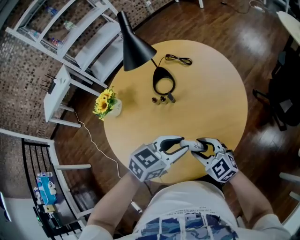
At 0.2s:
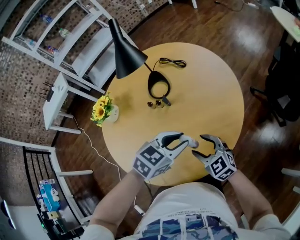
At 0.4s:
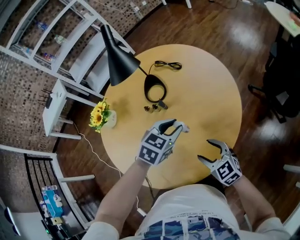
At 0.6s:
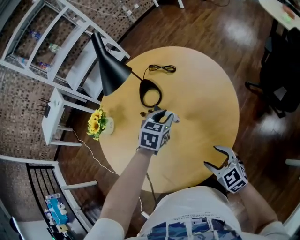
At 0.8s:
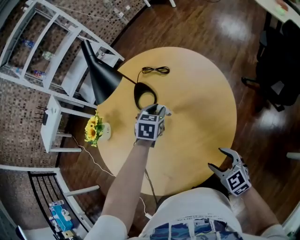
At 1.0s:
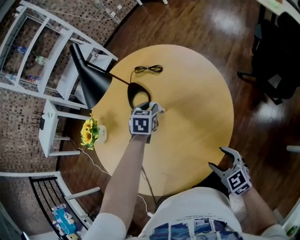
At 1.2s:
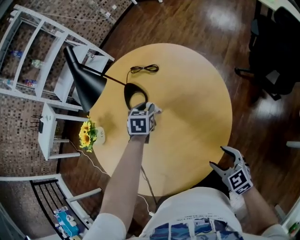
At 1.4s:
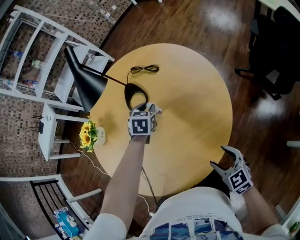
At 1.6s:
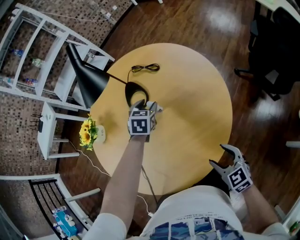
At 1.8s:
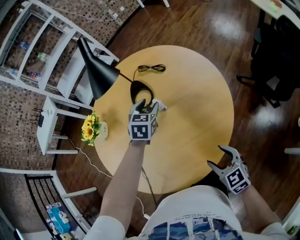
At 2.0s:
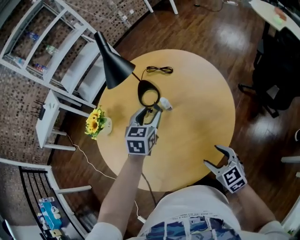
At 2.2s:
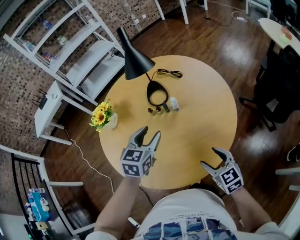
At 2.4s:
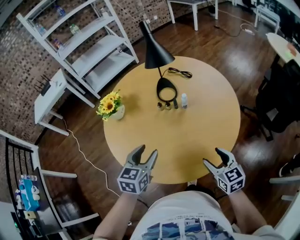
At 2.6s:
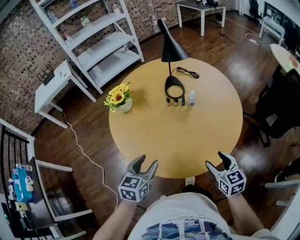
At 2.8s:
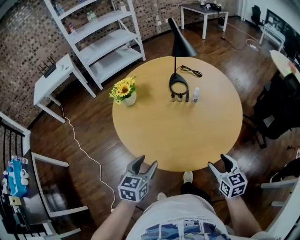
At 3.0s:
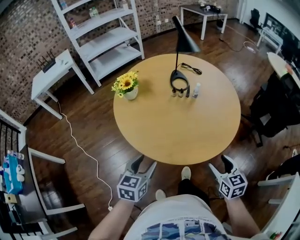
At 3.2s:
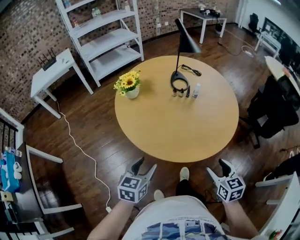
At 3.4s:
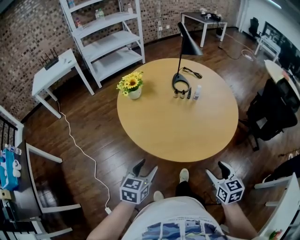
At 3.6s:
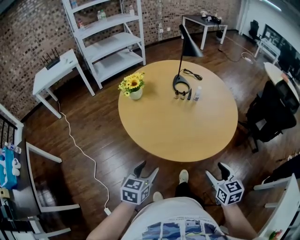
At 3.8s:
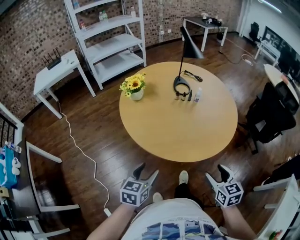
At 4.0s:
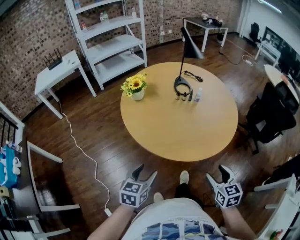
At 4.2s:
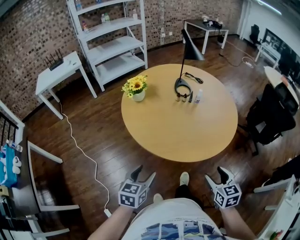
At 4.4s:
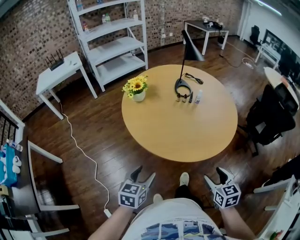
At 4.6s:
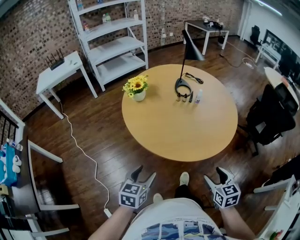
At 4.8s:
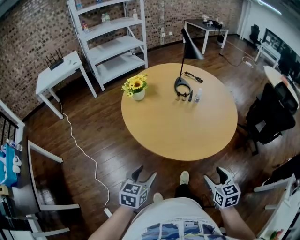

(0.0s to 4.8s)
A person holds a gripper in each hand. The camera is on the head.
0.0s - 1.6s: The left gripper travels forward and downward by about 30 cm, changes its angle by approximately 40 degrees, and opens its fingers; the right gripper shifts some 15 cm to the right, and turns by roughly 30 degrees.
1.6s - 3.2s: The right gripper goes roughly 35 cm to the left and backward. The left gripper is displaced backward and to the left by roughly 60 cm, and turns by some 30 degrees.
3.2s - 4.8s: Both grippers travel together backward, approximately 10 cm.

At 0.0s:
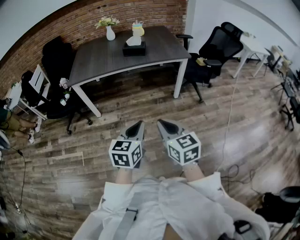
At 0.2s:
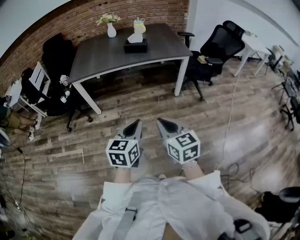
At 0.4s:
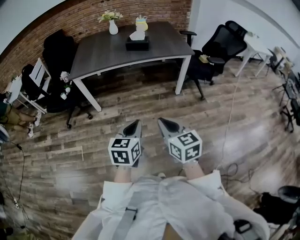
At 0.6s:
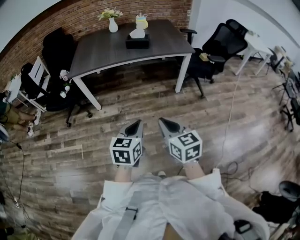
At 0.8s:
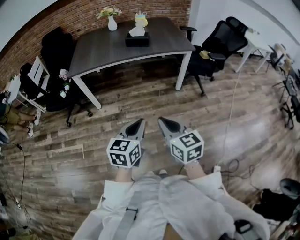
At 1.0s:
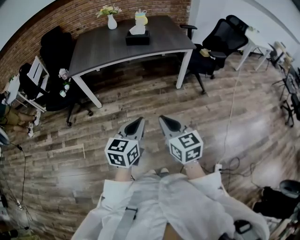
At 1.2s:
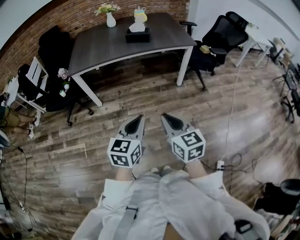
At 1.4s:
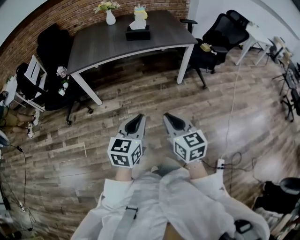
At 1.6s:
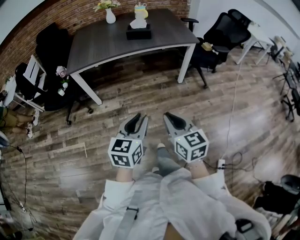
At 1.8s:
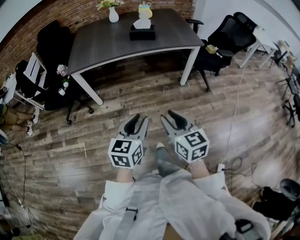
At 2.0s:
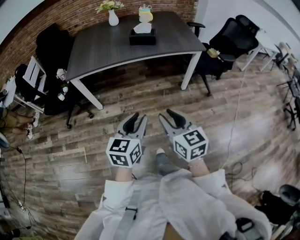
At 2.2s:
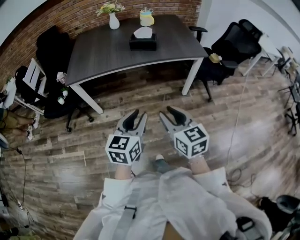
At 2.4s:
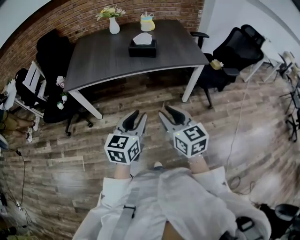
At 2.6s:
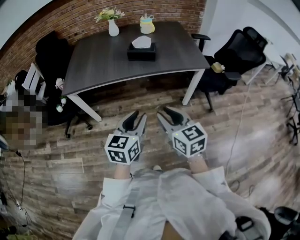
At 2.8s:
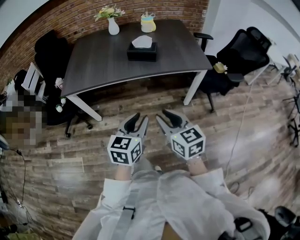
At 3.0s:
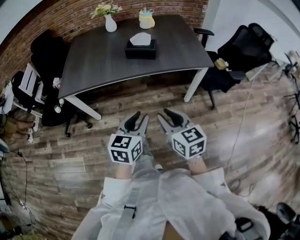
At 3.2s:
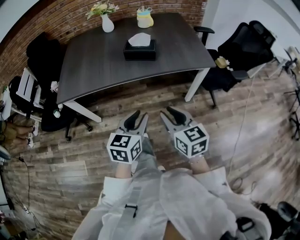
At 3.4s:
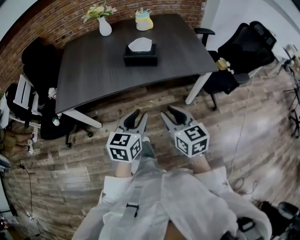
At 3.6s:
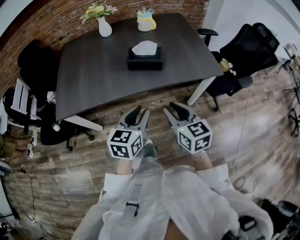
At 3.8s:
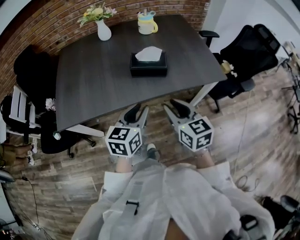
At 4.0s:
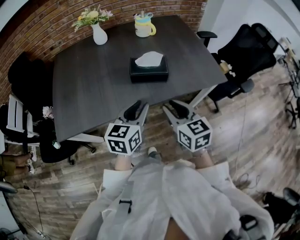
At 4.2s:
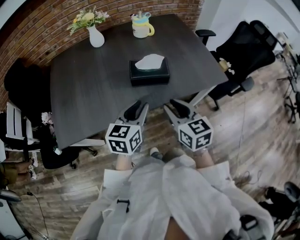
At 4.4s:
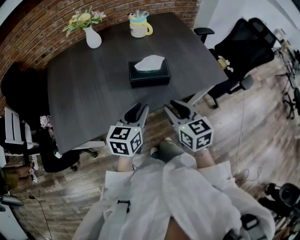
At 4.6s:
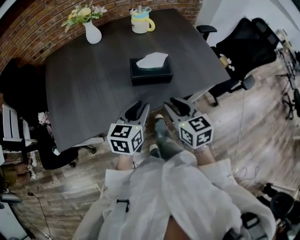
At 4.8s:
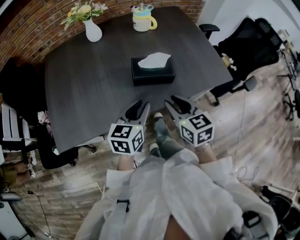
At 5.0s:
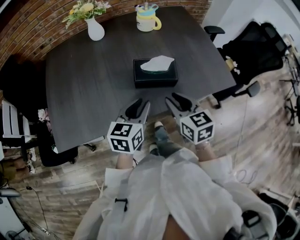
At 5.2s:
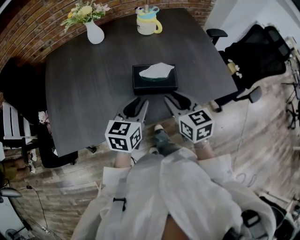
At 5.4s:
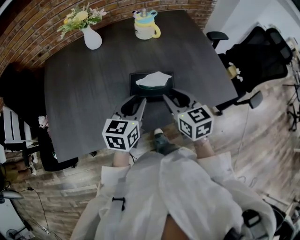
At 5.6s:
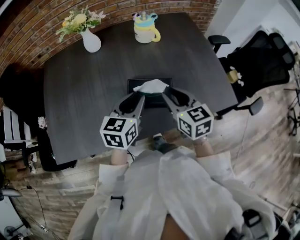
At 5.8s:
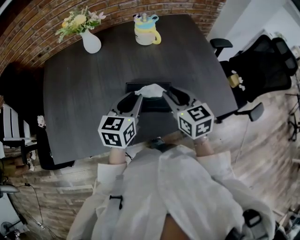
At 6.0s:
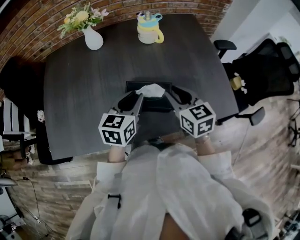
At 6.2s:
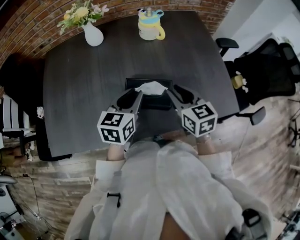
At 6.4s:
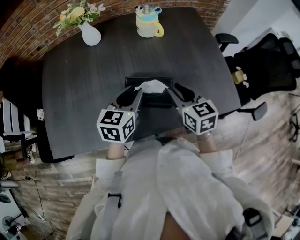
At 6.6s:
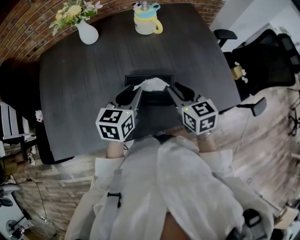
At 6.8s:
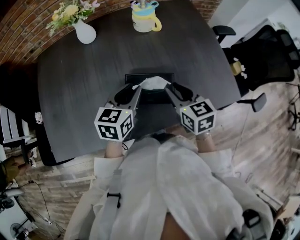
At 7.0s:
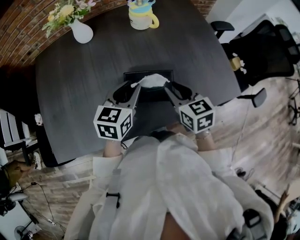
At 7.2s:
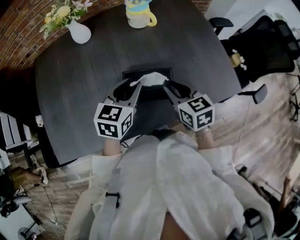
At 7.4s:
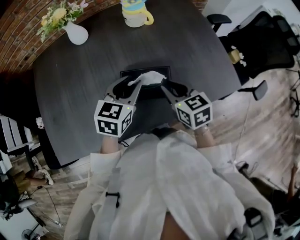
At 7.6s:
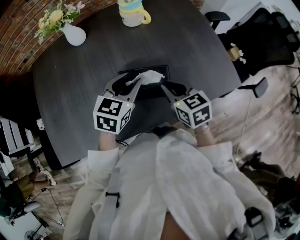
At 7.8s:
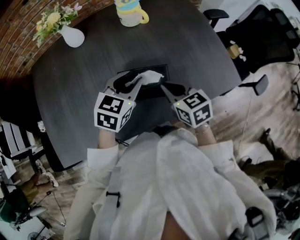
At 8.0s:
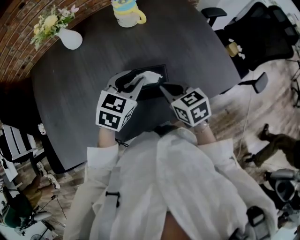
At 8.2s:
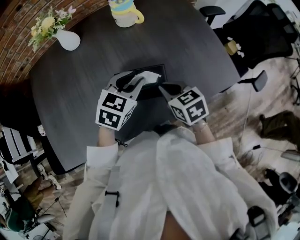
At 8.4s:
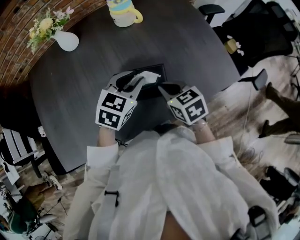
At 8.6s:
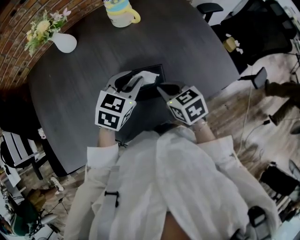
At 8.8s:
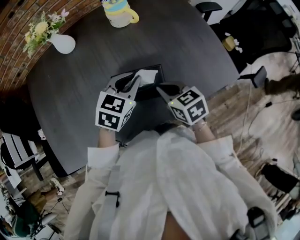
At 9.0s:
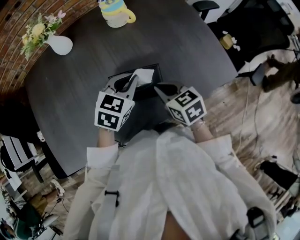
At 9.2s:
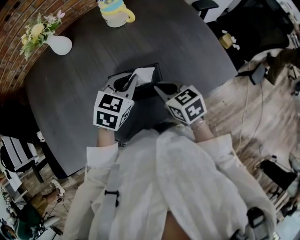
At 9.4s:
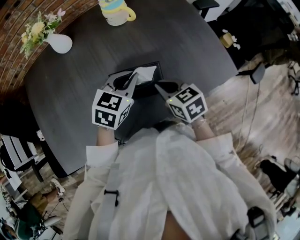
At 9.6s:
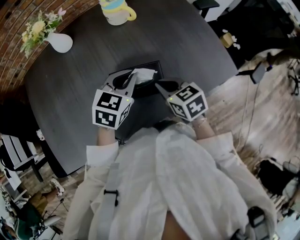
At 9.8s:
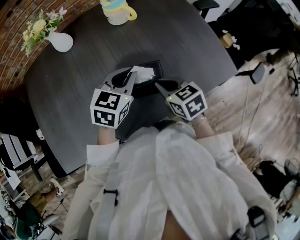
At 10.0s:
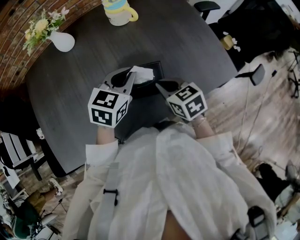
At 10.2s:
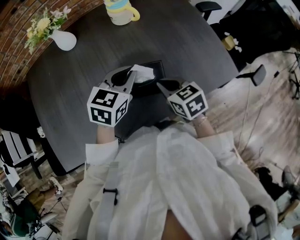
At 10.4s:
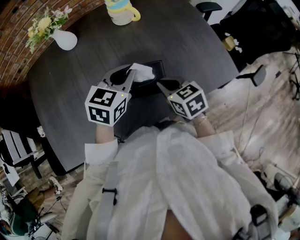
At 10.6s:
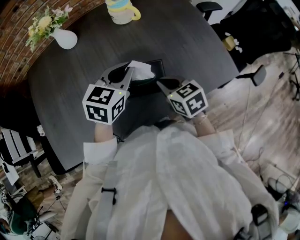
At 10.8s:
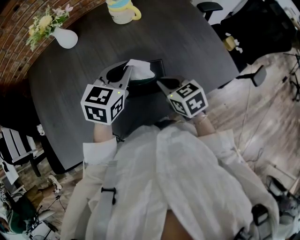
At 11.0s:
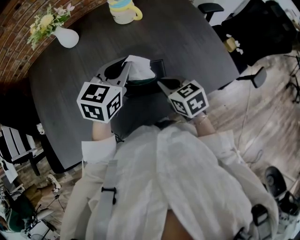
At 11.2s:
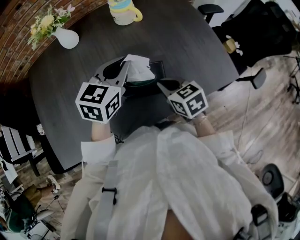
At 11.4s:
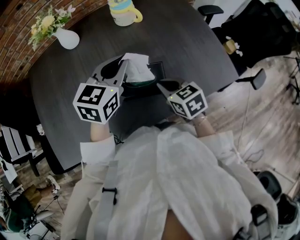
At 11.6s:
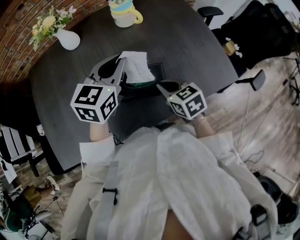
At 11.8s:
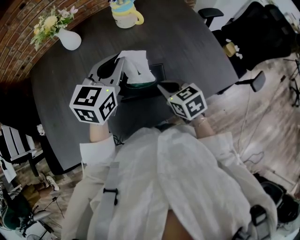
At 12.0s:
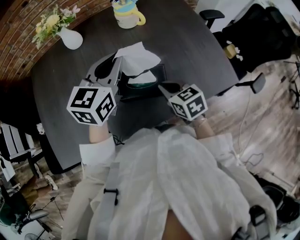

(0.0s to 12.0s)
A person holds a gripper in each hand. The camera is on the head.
0.0s - 1.6s: Both grippers travel together to the left, about 5 cm.
1.6s - 3.0s: The grippers both shift forward by roughly 30 cm. The right gripper opens up.
3.0s - 4.4s: Both grippers travel together forward, some 35 cm.
4.4s - 6.0s: The two grippers go approximately 25 cm forward.
6.0s - 7.6s: The left gripper rotates about 20 degrees; the right gripper moves downward, roughly 5 cm.
7.6s - 9.0s: The left gripper closes.
9.0s - 10.4s: The grippers stay close to where they were, moving slightly.
10.4s - 12.0s: The left gripper goes some 10 cm upward.

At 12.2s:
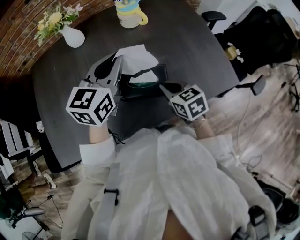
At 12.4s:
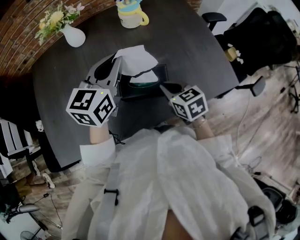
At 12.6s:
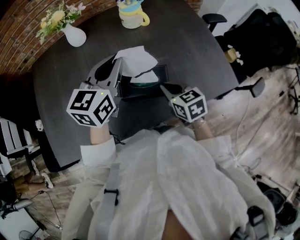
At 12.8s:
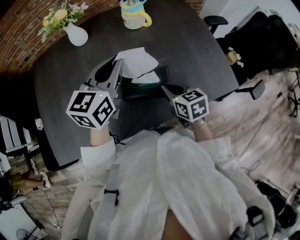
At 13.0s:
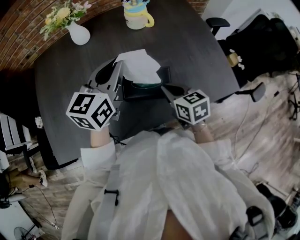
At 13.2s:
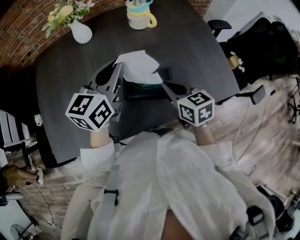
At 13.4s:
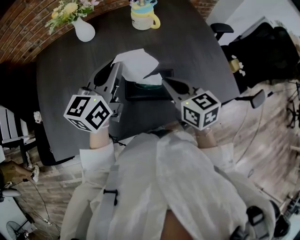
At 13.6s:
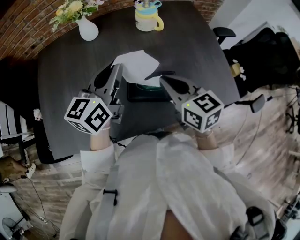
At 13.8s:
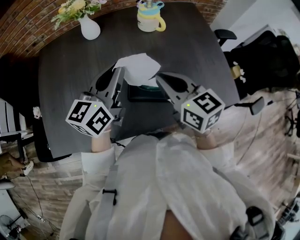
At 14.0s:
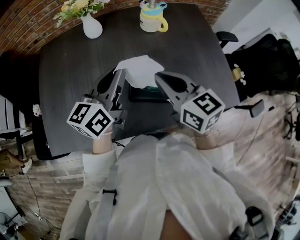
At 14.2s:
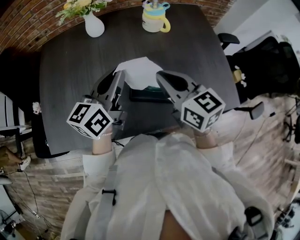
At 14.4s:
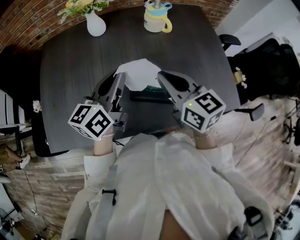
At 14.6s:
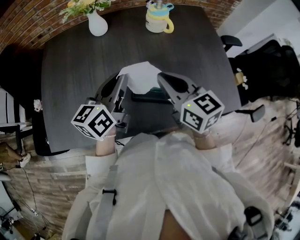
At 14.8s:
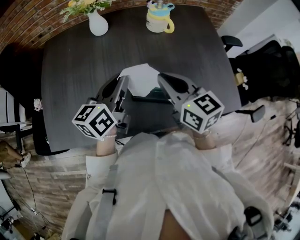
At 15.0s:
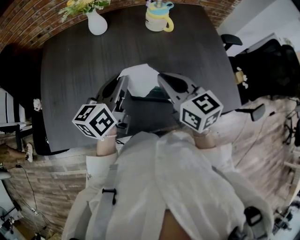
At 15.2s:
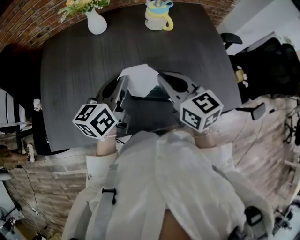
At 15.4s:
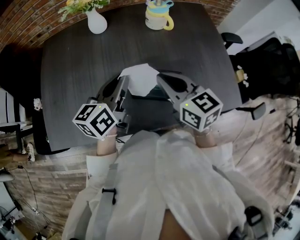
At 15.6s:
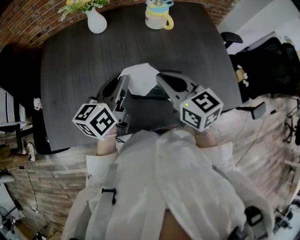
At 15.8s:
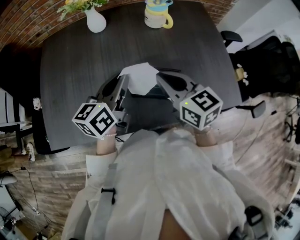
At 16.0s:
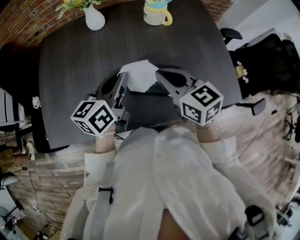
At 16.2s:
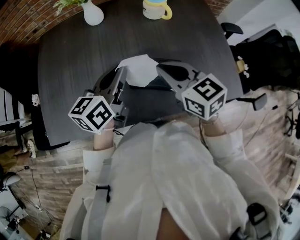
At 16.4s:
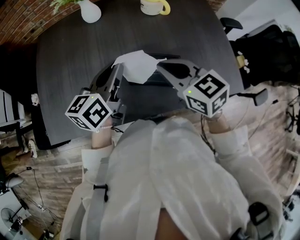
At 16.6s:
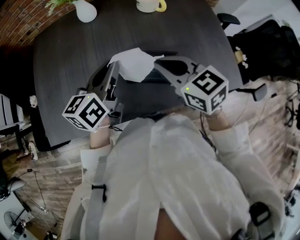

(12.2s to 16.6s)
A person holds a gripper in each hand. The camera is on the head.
12.2s - 13.6s: The right gripper moves upward, roughly 15 cm, and turns by about 20 degrees; the left gripper moves to the left, some 5 cm.
13.6s - 15.2s: The left gripper travels downward by some 5 cm.
15.2s - 16.6s: There are only small adjustments of the grippers.

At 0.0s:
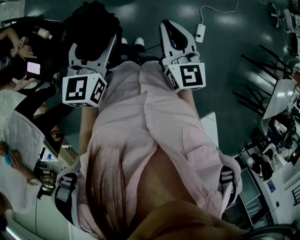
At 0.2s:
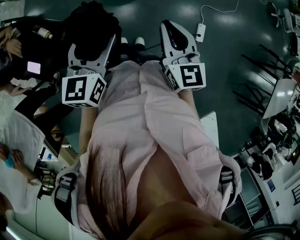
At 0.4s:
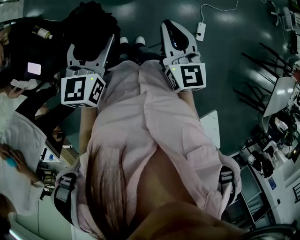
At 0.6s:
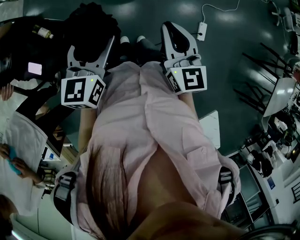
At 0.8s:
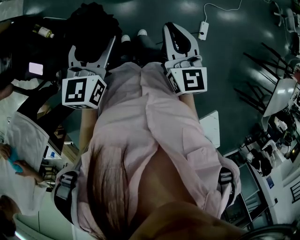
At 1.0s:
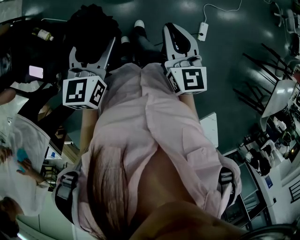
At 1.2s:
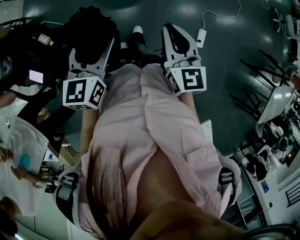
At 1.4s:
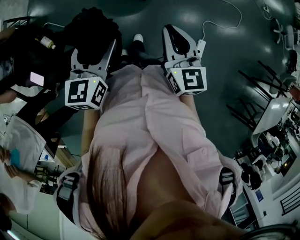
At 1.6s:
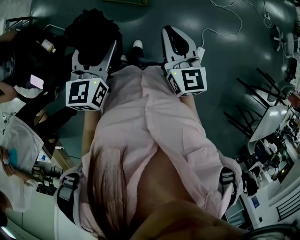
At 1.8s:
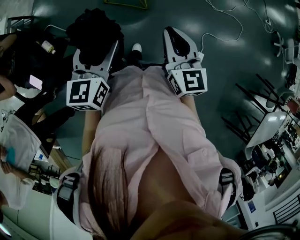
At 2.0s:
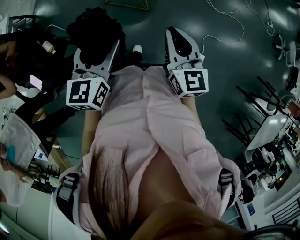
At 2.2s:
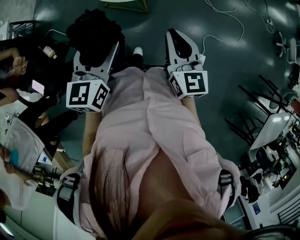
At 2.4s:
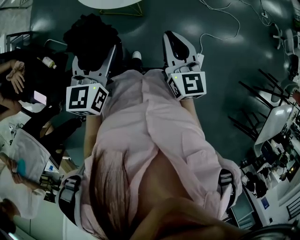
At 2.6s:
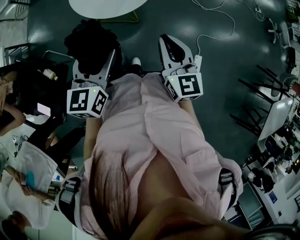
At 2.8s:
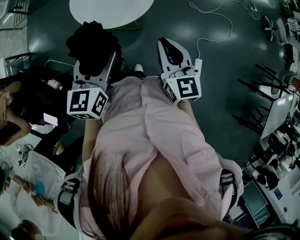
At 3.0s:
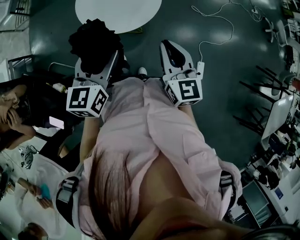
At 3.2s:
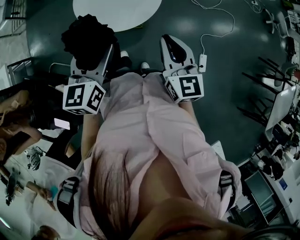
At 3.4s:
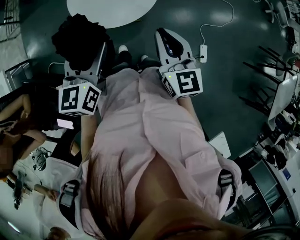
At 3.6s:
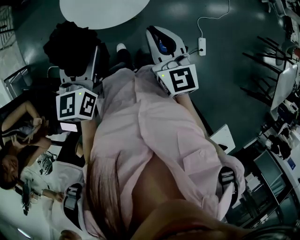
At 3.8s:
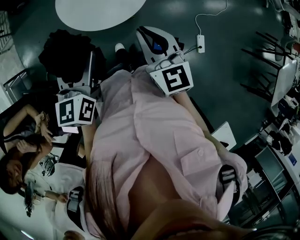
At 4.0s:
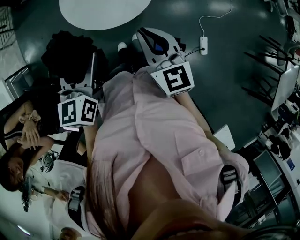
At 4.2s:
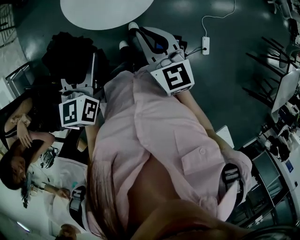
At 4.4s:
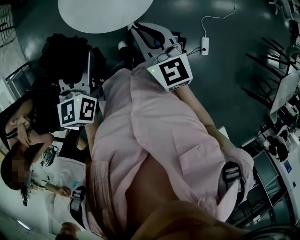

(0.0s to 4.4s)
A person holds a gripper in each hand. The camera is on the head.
0.0s - 1.4s: The two grippers go some 10 cm forward.
1.4s - 3.0s: Both grippers move forward, roughly 15 cm.
3.0s - 4.4s: Both grippers travel together to the left and forward, about 10 cm.
